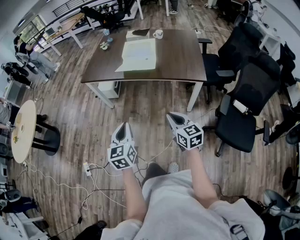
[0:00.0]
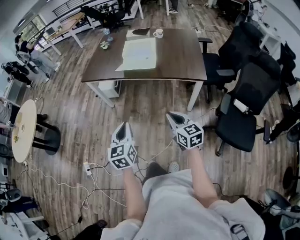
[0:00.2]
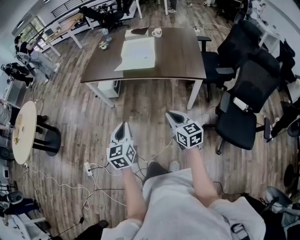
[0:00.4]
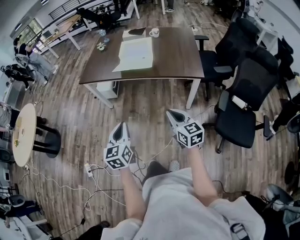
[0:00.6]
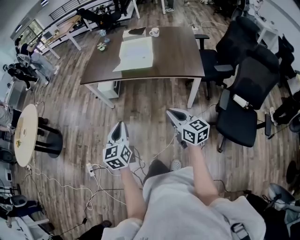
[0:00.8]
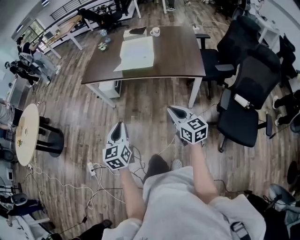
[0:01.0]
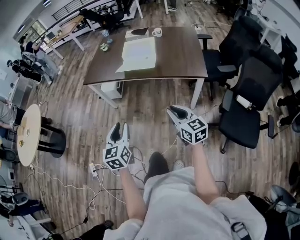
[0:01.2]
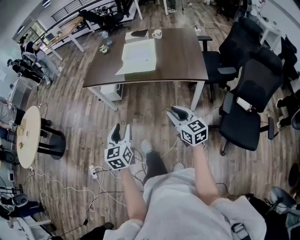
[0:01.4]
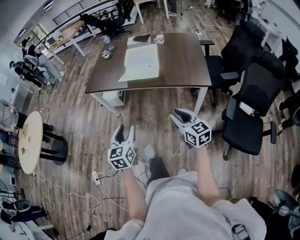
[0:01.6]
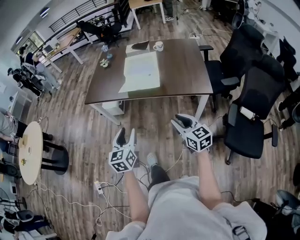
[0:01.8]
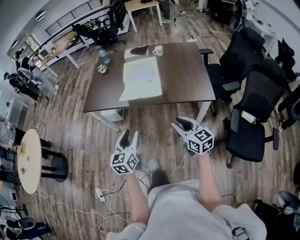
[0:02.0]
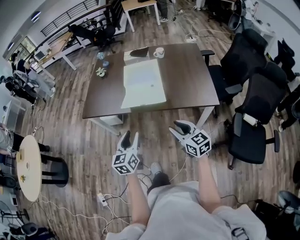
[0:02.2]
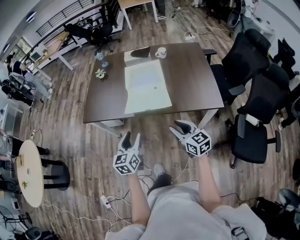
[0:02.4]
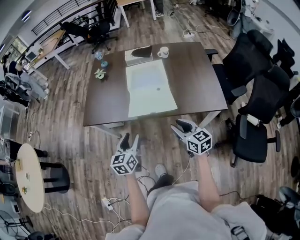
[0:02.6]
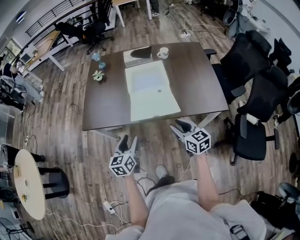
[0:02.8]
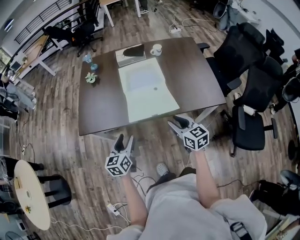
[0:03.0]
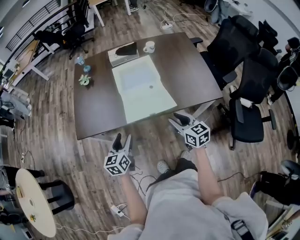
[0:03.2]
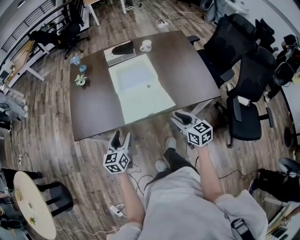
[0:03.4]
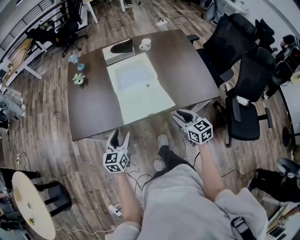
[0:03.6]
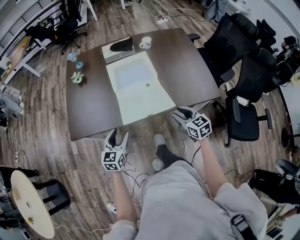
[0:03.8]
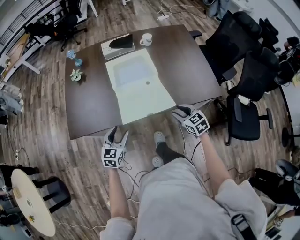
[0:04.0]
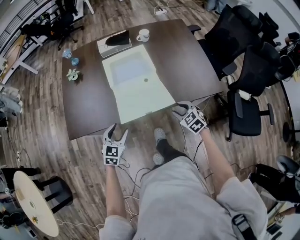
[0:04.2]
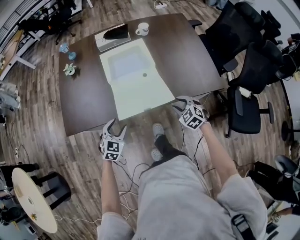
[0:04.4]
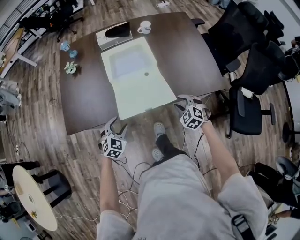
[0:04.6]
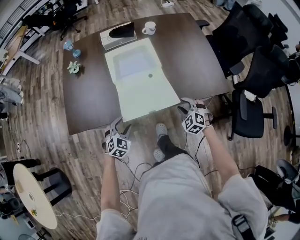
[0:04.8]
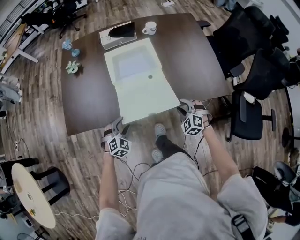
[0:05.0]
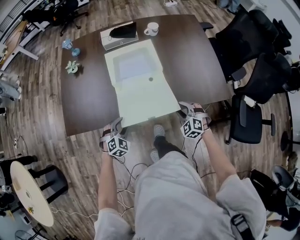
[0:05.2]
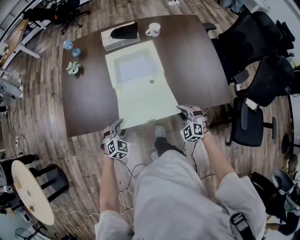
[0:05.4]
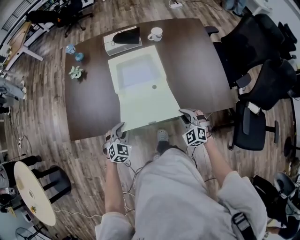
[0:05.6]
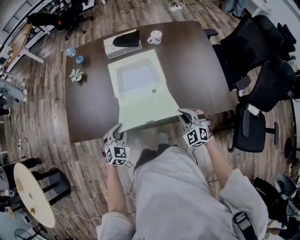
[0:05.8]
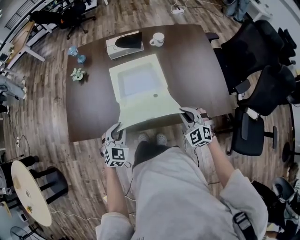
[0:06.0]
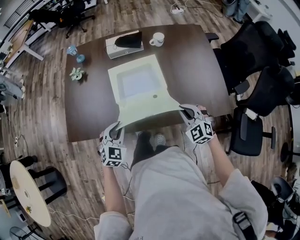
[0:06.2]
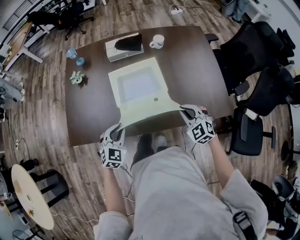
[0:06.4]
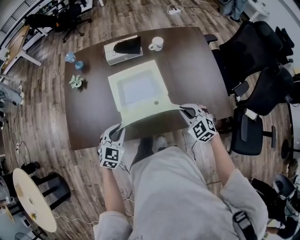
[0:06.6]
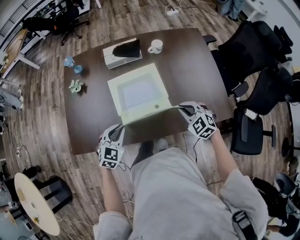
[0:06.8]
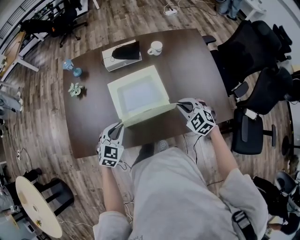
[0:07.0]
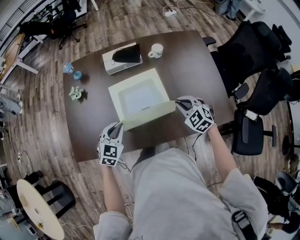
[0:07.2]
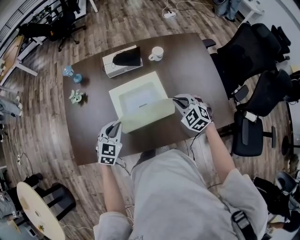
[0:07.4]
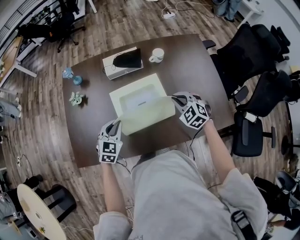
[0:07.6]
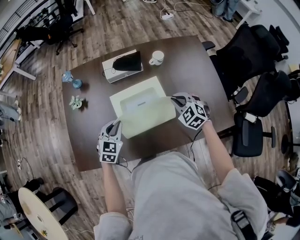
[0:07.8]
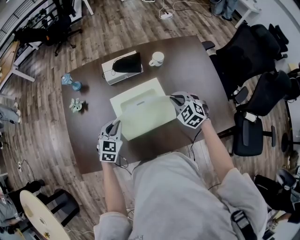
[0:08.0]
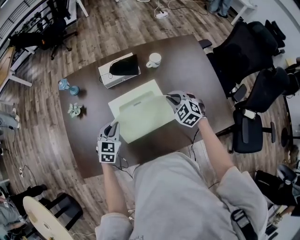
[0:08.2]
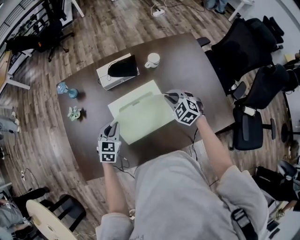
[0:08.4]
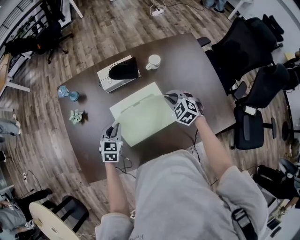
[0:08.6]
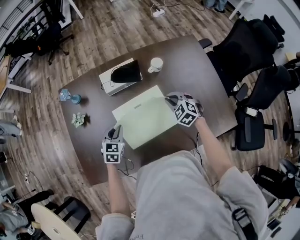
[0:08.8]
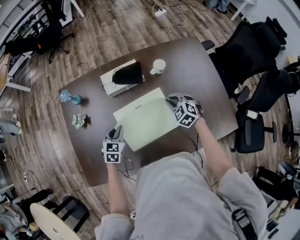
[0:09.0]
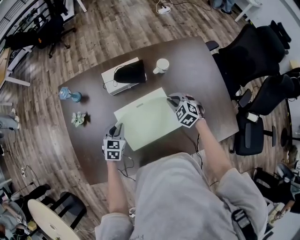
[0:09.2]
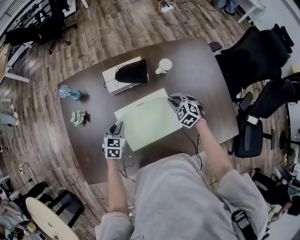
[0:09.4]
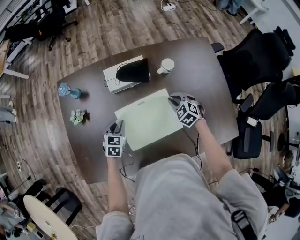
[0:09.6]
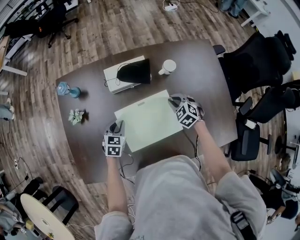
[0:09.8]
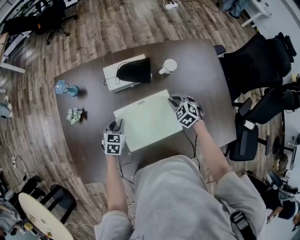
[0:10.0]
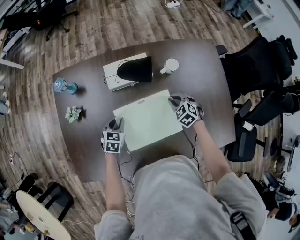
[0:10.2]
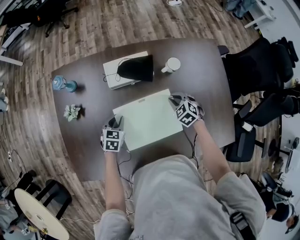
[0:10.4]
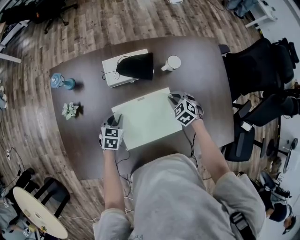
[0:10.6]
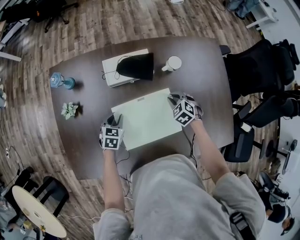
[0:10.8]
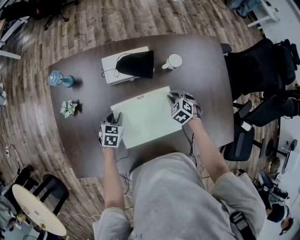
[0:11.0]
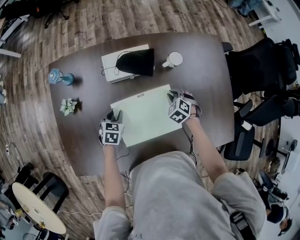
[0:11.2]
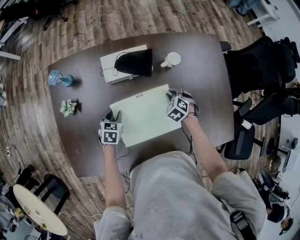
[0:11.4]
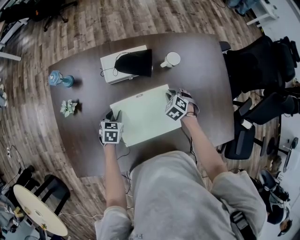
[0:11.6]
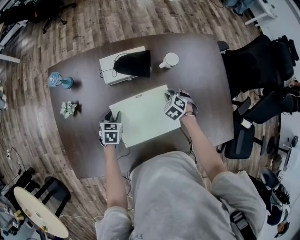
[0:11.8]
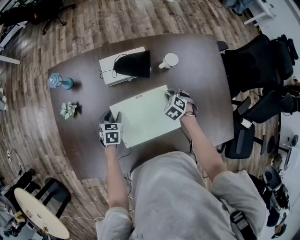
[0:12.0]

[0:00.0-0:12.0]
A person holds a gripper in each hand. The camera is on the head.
0:00.0 to 0:01.6: The two grippers go some 5 cm forward. The right gripper opens up, while the left gripper opens its fingers.
0:01.6 to 0:03.0: The two grippers go approximately 35 cm forward. The left gripper turns by roughly 20 degrees.
0:03.0 to 0:04.4: The right gripper goes roughly 20 cm downward, to the right and forward, and points its fingers approximately 30 degrees further downward. Meanwhile the left gripper shifts approximately 15 cm downward and forward, and rotates around the line of its fingers by some 40 degrees, clockwise from behind.
0:04.4 to 0:06.0: The left gripper moves forward, roughly 10 cm, and closes; the right gripper travels forward and upward by about 10 cm, swivels some 20 degrees, and closes.
0:06.0 to 0:07.6: Both grippers move forward, approximately 20 cm.
0:07.6 to 0:09.0: The right gripper shifts about 10 cm forward. The left gripper goes about 15 cm forward and downward.
0:09.0 to 0:10.4: Both grippers move downward and forward, some 10 cm.
0:10.4 to 0:12.0: The left gripper opens its fingers.

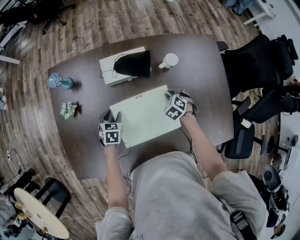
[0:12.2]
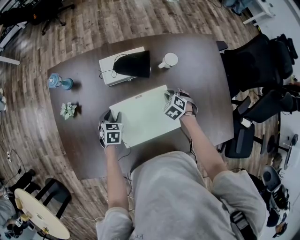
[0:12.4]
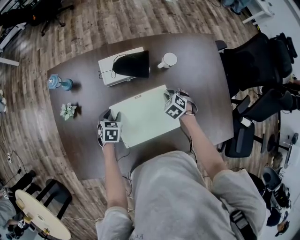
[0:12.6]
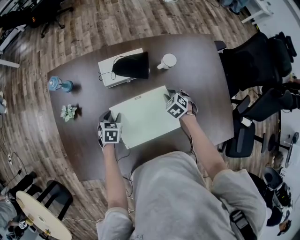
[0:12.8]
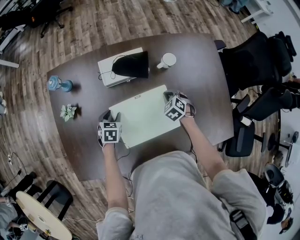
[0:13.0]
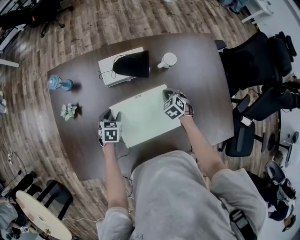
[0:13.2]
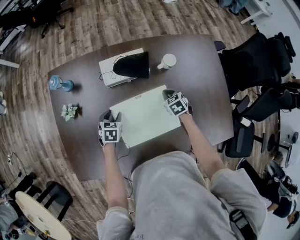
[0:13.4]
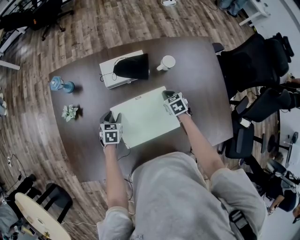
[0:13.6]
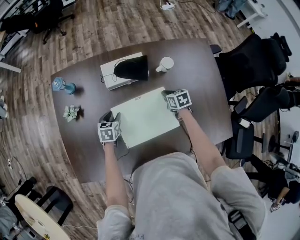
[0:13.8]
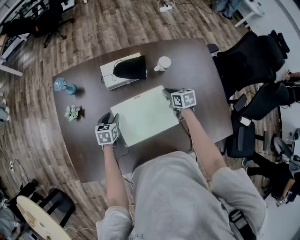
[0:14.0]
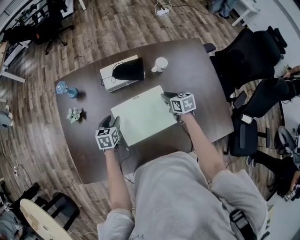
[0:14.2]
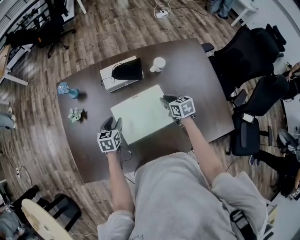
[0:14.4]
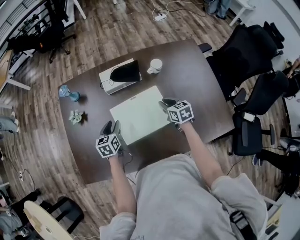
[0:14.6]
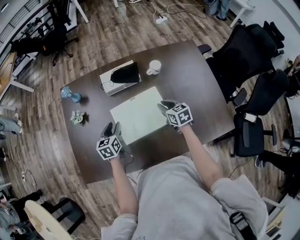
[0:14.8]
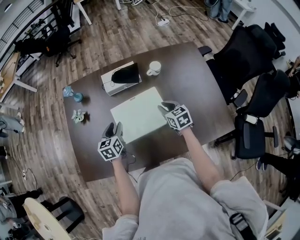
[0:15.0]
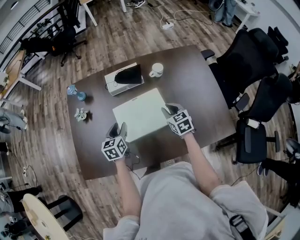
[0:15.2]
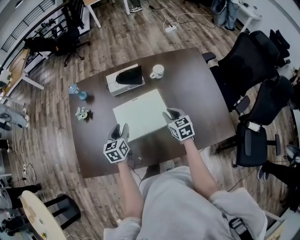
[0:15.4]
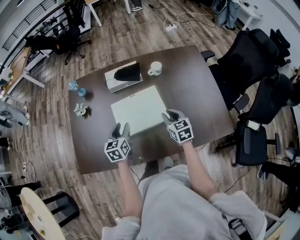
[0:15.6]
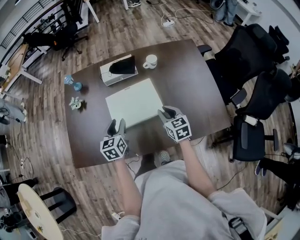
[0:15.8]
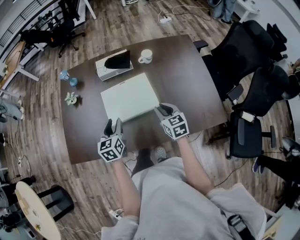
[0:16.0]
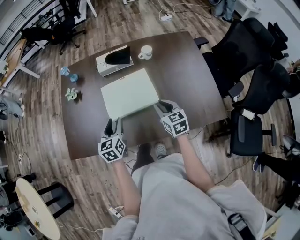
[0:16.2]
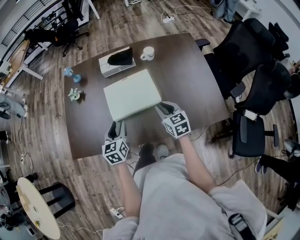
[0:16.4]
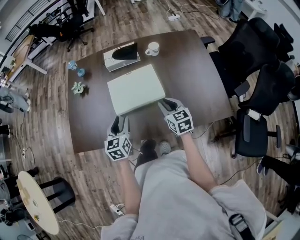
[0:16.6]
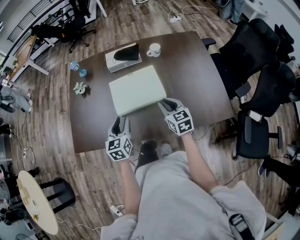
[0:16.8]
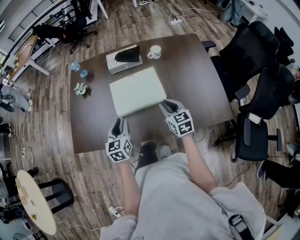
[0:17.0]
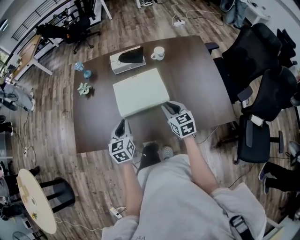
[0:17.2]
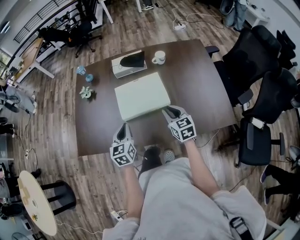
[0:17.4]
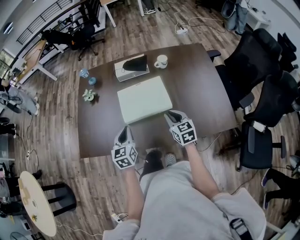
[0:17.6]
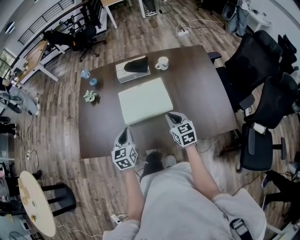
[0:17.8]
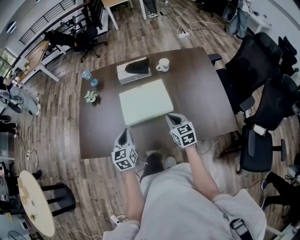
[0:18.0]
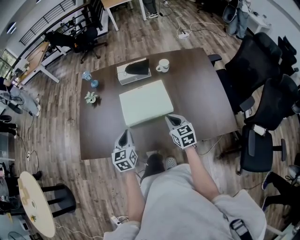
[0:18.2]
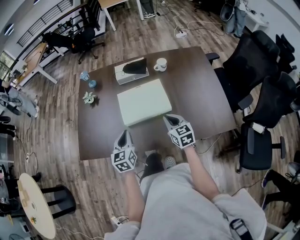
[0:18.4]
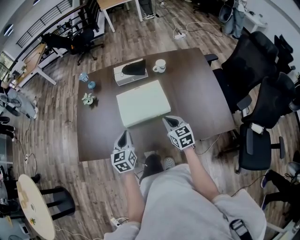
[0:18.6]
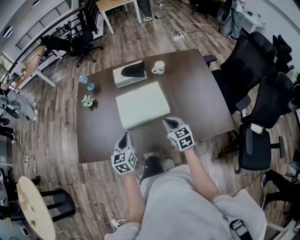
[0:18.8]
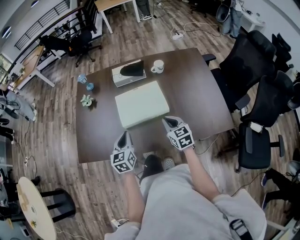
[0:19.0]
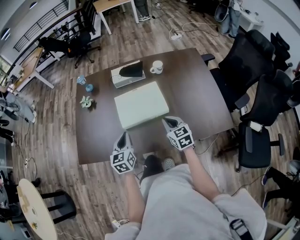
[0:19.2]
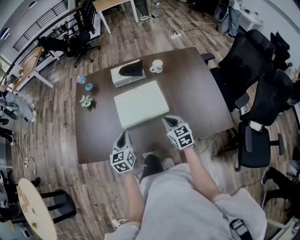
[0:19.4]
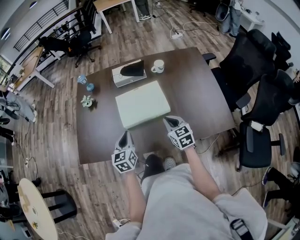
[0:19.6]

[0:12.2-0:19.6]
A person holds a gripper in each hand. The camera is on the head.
0:12.2 to 0:13.6: The right gripper changes its angle by approximately 30 degrees.
0:13.6 to 0:15.2: The left gripper travels upward and backward by approximately 20 cm, and rotates roughly 30 degrees, while the right gripper travels backward and upward by some 20 cm, and turns by approximately 20 degrees.
0:15.2 to 0:16.6: The grippers both shift backward by some 15 cm.
0:16.6 to 0:18.2: The left gripper closes up.
0:18.2 to 0:19.6: The two grippers keep their place.

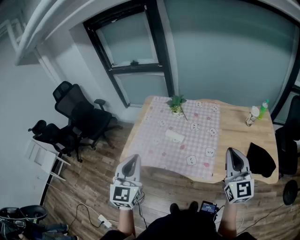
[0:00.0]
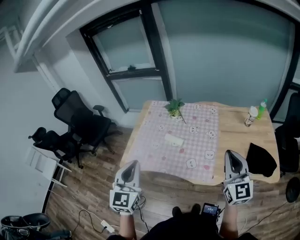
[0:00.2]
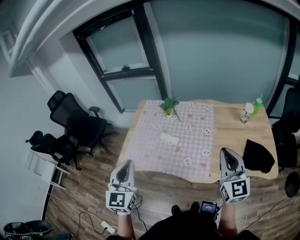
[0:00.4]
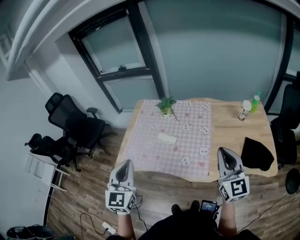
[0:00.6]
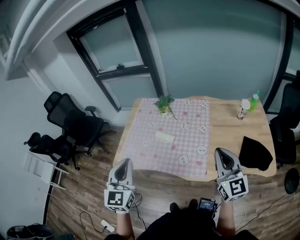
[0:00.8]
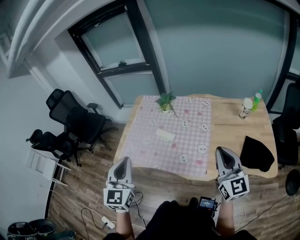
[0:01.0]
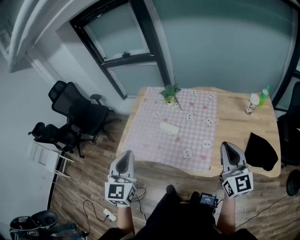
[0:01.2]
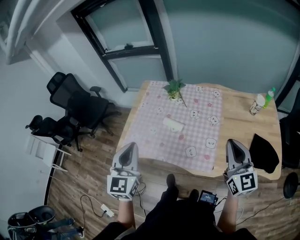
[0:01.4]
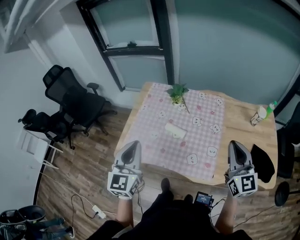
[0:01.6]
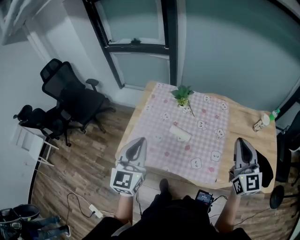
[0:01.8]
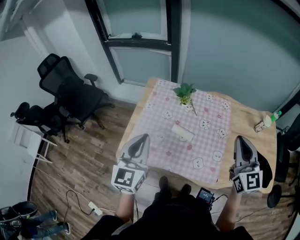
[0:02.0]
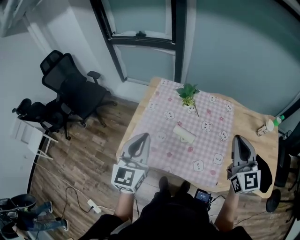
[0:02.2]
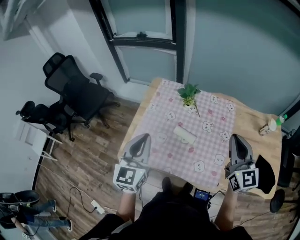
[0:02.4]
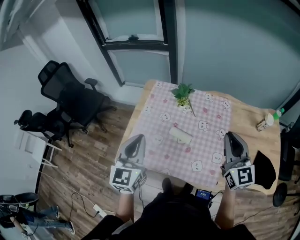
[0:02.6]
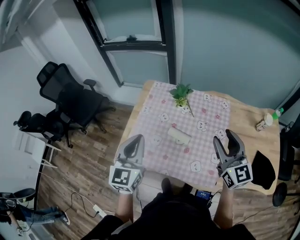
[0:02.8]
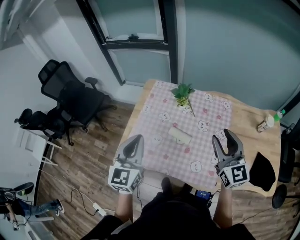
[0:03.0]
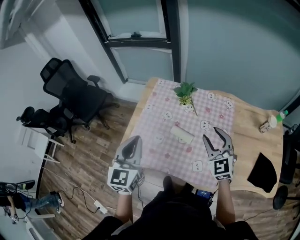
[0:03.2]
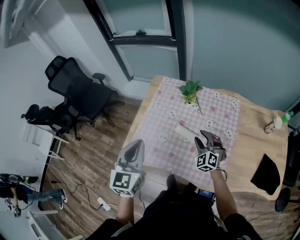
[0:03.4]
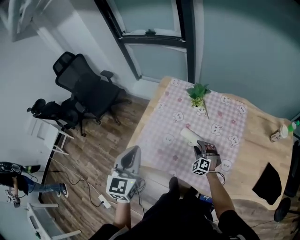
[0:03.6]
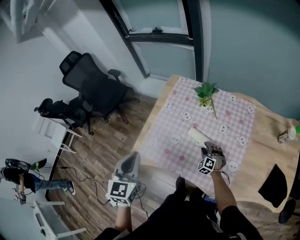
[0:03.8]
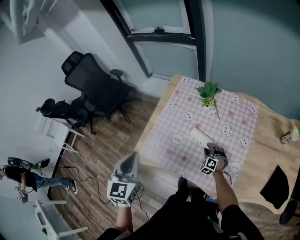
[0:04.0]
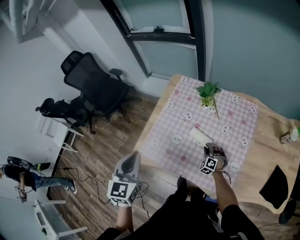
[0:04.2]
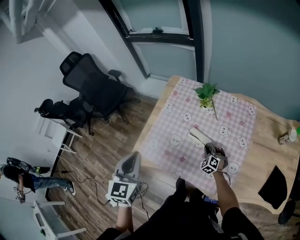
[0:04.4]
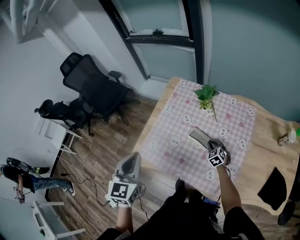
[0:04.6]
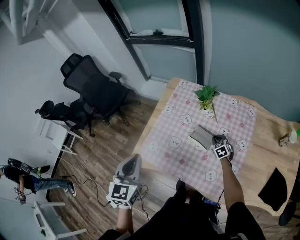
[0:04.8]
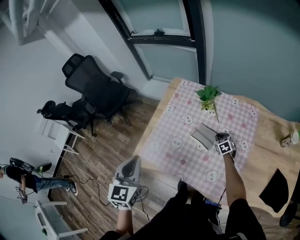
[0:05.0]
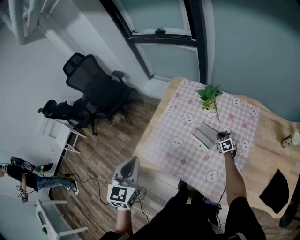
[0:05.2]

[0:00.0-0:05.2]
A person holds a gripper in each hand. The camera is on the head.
0:00.0 to 0:01.8: The left gripper goes some 15 cm forward. The right gripper goes roughly 15 cm forward and to the left.
0:01.8 to 0:03.4: The left gripper changes place by roughly 5 cm; the right gripper heads downward, forward and to the left, covering some 35 cm, tilts its fingers about 30 degrees downward, and opens its fingers.
0:03.4 to 0:05.2: The left gripper heads to the left, covering approximately 5 cm; the right gripper moves downward, forward and to the right, approximately 25 cm, twists about 40 degrees clockwise, seen from behind, and closes its fingers.
